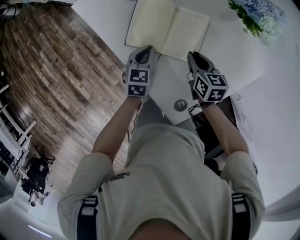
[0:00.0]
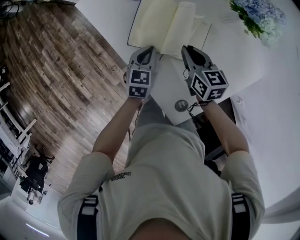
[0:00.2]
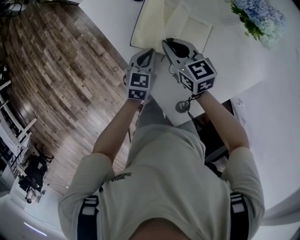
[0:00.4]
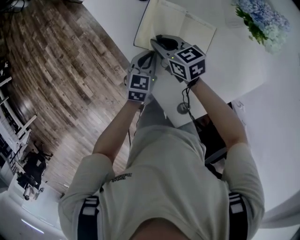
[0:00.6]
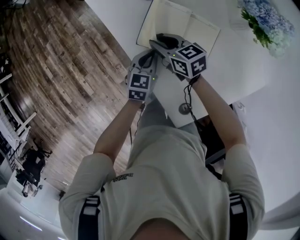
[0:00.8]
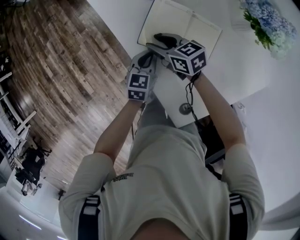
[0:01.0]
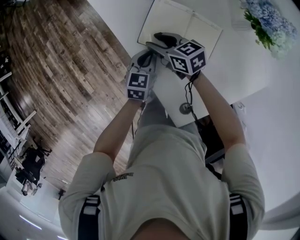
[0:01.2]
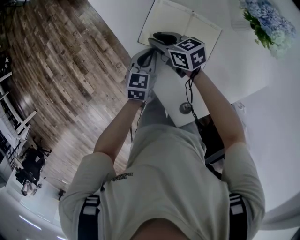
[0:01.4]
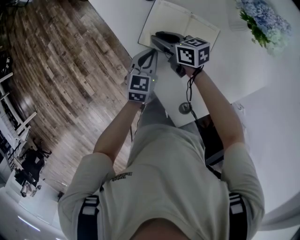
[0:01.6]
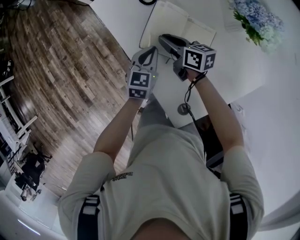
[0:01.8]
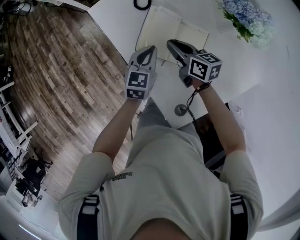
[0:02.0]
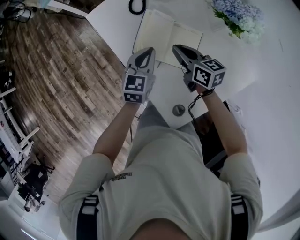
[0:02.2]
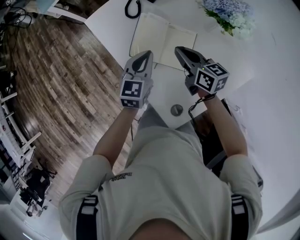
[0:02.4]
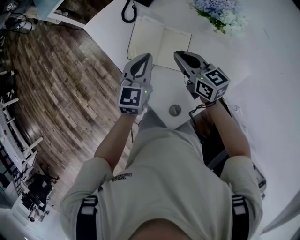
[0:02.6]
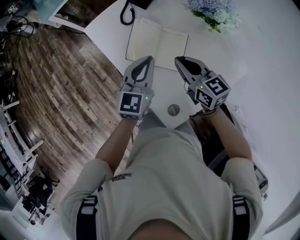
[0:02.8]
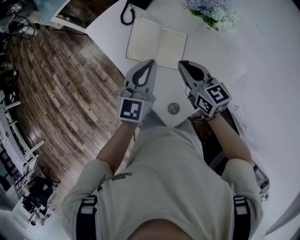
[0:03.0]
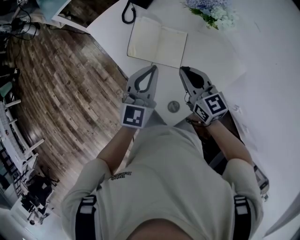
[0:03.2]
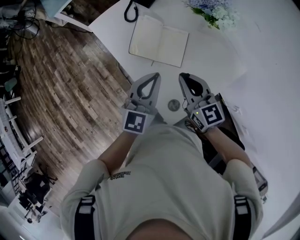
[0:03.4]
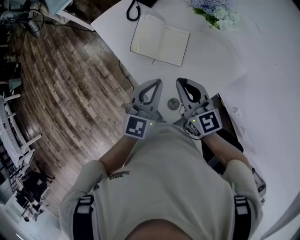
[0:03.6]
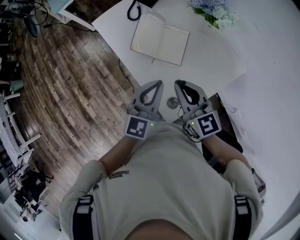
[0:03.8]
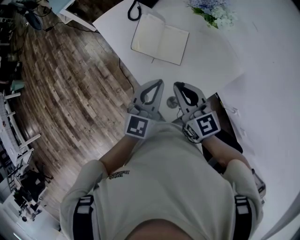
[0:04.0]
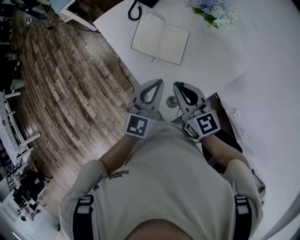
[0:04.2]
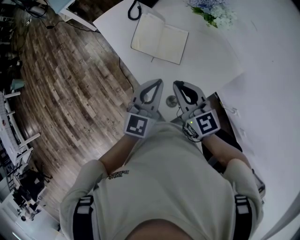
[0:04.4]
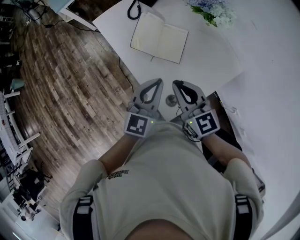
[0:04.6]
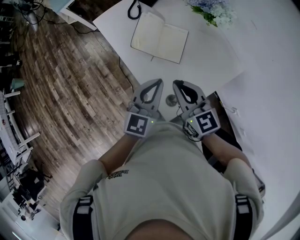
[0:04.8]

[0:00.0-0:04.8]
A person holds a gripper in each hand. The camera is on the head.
0:00.0 to 0:01.6: The right gripper goes roughly 20 cm to the left and forward, and rotates roughly 40 degrees.
0:01.6 to 0:03.2: The right gripper heads upward, backward and to the right, covering roughly 30 cm, turns by some 40 degrees, and closes; the left gripper goes about 25 cm upward, and turns by about 30 degrees.
0:03.2 to 0:04.8: The two grippers go about 10 cm backward.

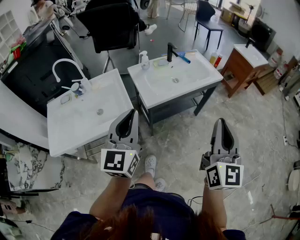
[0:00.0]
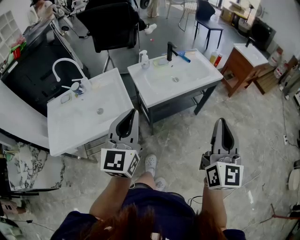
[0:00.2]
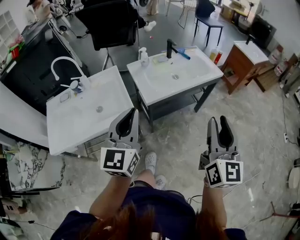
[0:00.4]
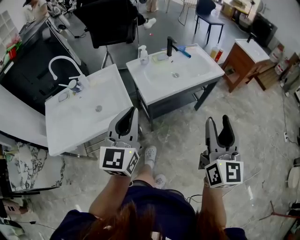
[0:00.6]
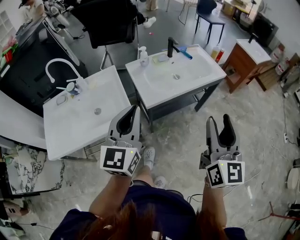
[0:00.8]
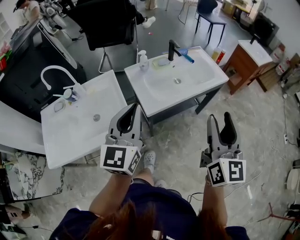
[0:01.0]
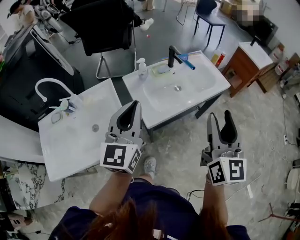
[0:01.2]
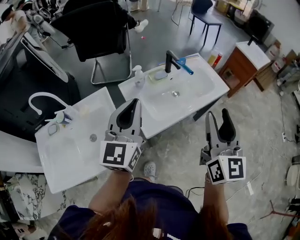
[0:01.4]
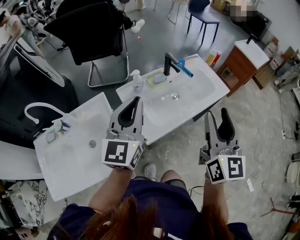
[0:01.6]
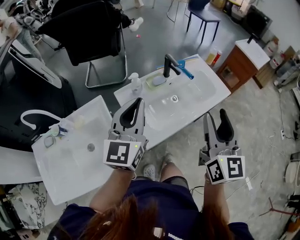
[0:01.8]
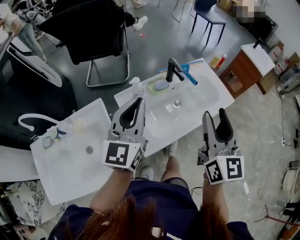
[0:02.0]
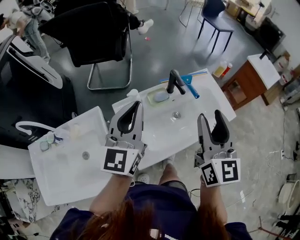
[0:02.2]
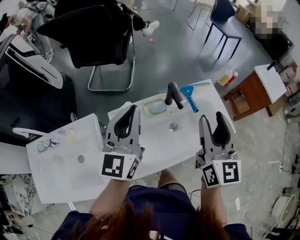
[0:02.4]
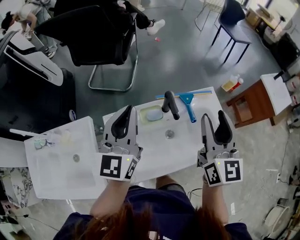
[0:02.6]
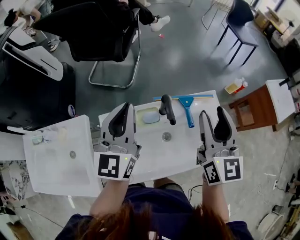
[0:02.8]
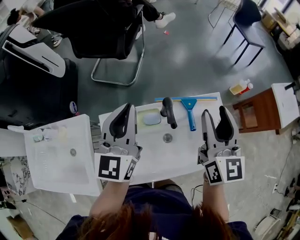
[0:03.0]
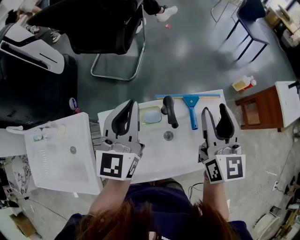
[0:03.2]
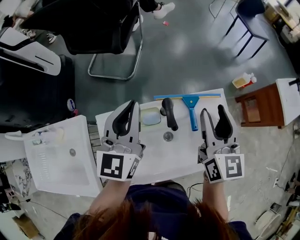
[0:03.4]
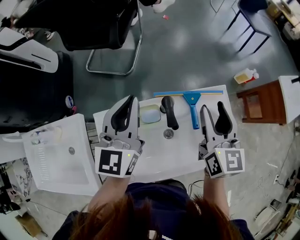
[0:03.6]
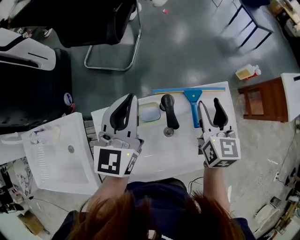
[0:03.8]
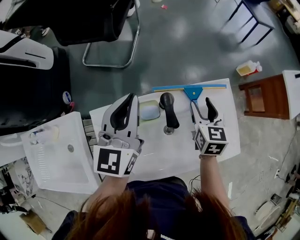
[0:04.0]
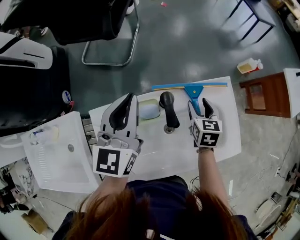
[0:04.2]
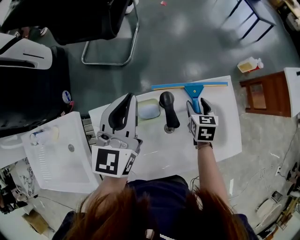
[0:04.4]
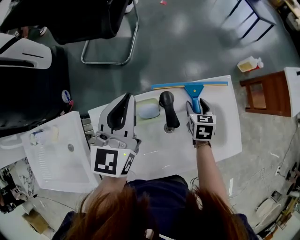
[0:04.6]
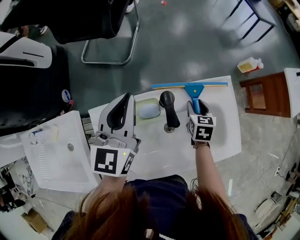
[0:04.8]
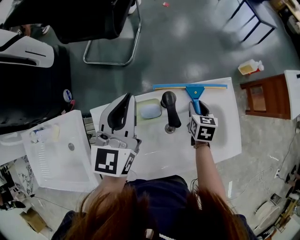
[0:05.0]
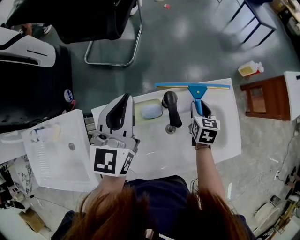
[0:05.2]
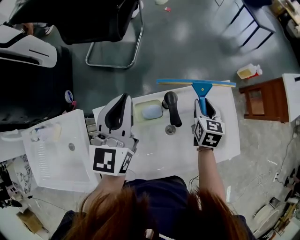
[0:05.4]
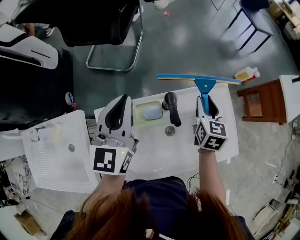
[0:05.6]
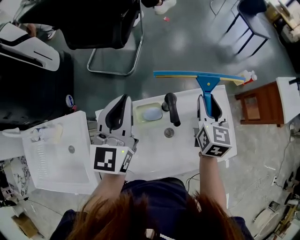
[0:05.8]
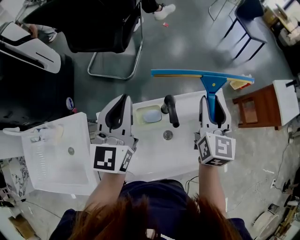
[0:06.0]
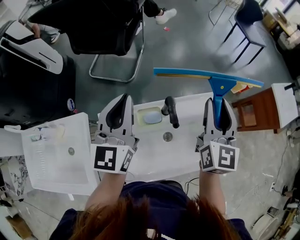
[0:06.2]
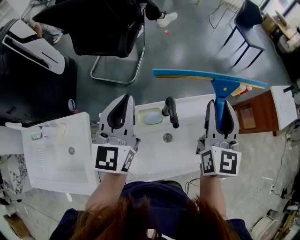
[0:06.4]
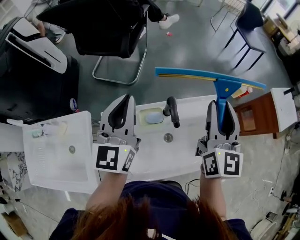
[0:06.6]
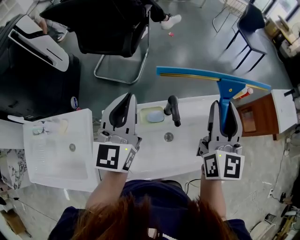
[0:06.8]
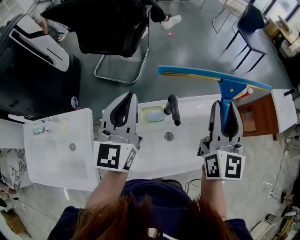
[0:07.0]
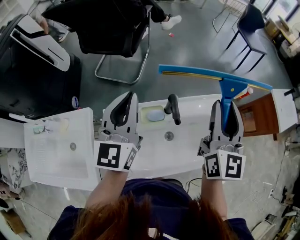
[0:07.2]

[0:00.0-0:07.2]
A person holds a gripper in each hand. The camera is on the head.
0:00.0 to 0:01.4: Both grippers move forward, approximately 30 cm. The right gripper opens up.
0:01.4 to 0:02.8: The two grippers go roughly 40 cm forward. The right gripper swivels some 20 degrees.
0:02.8 to 0:04.4: The right gripper goes approximately 35 cm downward, and tilts its fingers some 50 degrees downward, while the left gripper is displaced downward and forward by about 15 cm.
0:04.4 to 0:05.8: The left gripper travels upward by roughly 5 cm, while the right gripper heads upward, covering about 20 cm, swivels roughly 30 degrees, and closes its fingers.
0:05.8 to 0:07.2: The right gripper travels upward and backward by about 20 cm, and rotates roughly 30 degrees; the left gripper shifts approximately 10 cm upward.

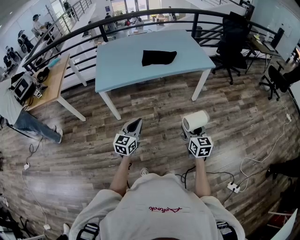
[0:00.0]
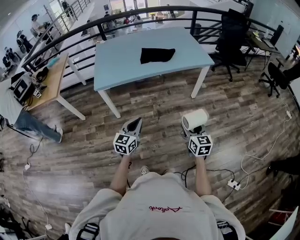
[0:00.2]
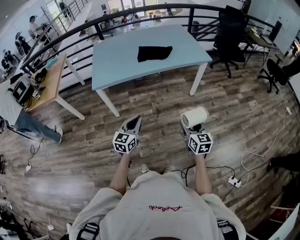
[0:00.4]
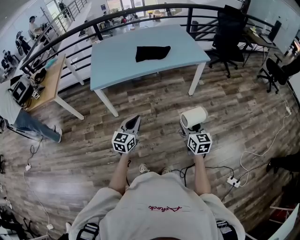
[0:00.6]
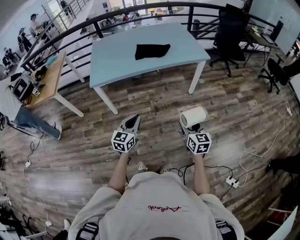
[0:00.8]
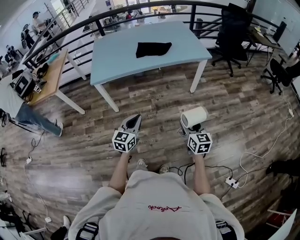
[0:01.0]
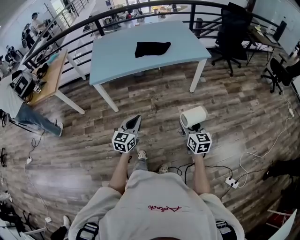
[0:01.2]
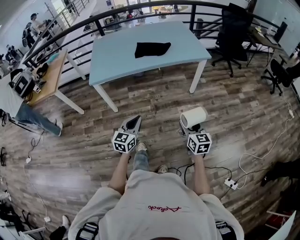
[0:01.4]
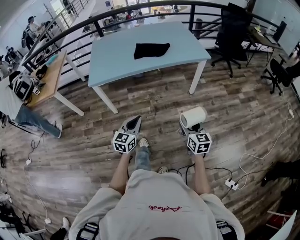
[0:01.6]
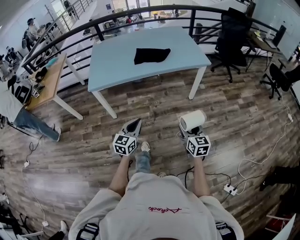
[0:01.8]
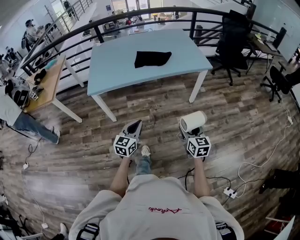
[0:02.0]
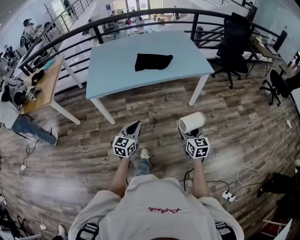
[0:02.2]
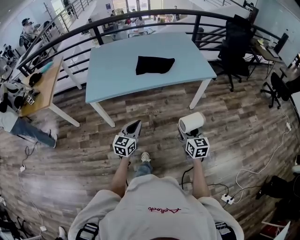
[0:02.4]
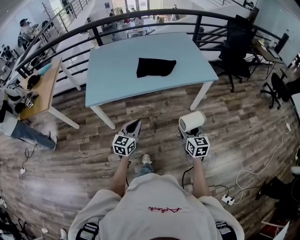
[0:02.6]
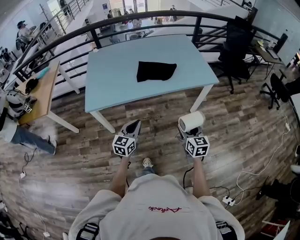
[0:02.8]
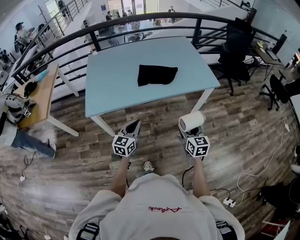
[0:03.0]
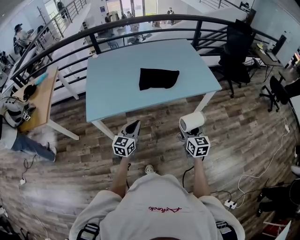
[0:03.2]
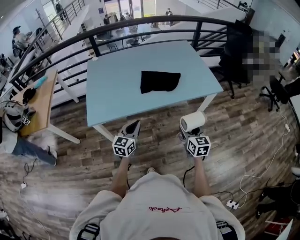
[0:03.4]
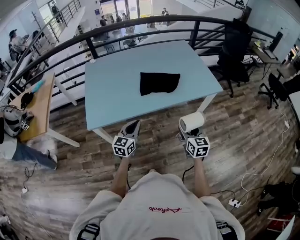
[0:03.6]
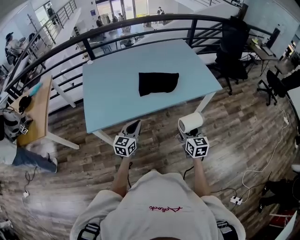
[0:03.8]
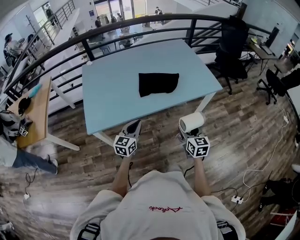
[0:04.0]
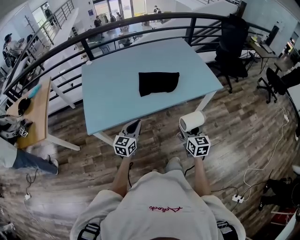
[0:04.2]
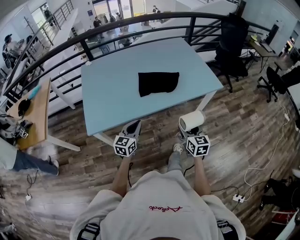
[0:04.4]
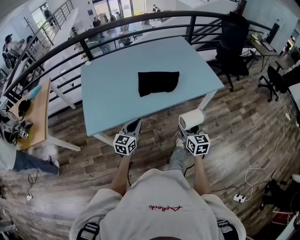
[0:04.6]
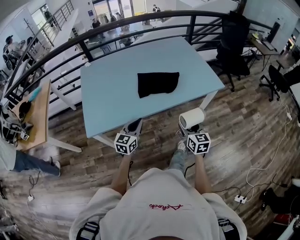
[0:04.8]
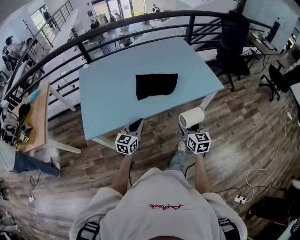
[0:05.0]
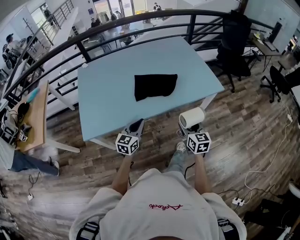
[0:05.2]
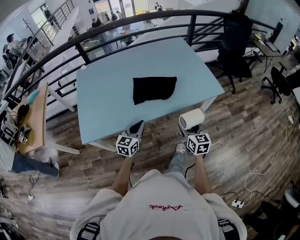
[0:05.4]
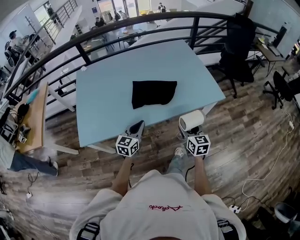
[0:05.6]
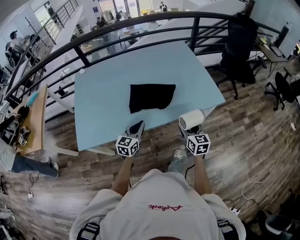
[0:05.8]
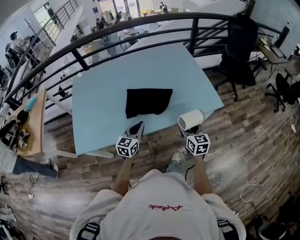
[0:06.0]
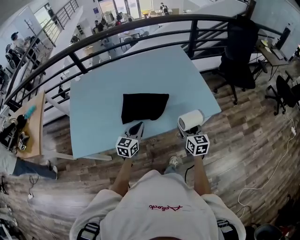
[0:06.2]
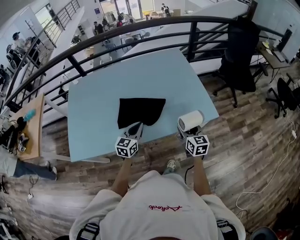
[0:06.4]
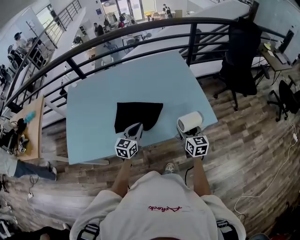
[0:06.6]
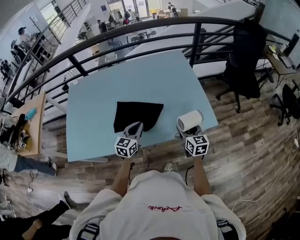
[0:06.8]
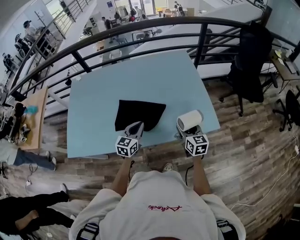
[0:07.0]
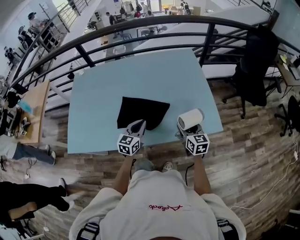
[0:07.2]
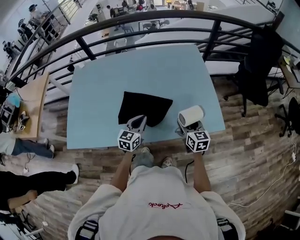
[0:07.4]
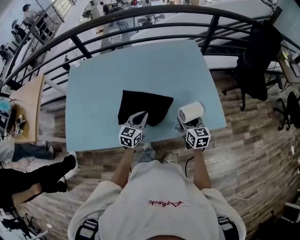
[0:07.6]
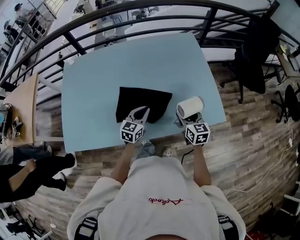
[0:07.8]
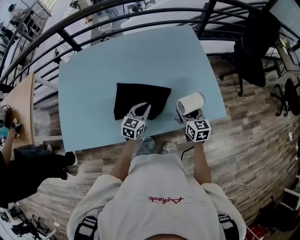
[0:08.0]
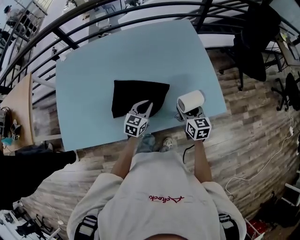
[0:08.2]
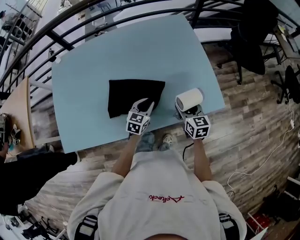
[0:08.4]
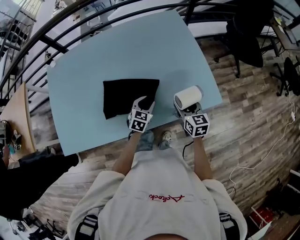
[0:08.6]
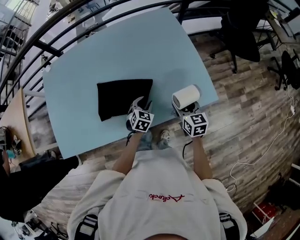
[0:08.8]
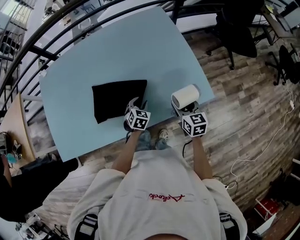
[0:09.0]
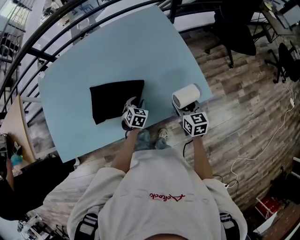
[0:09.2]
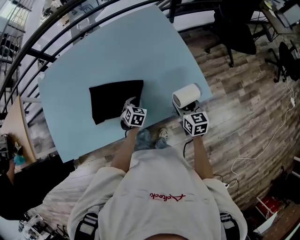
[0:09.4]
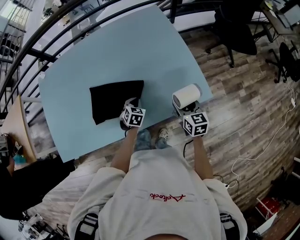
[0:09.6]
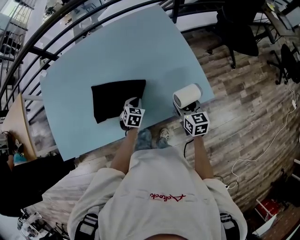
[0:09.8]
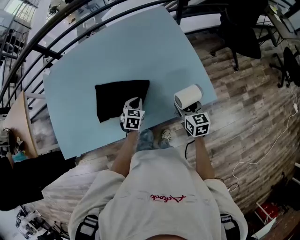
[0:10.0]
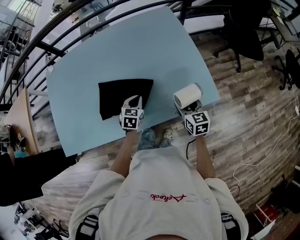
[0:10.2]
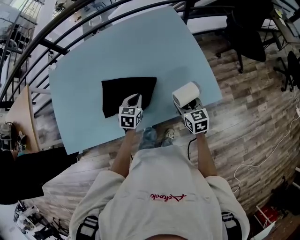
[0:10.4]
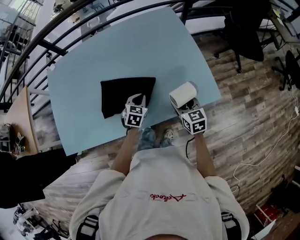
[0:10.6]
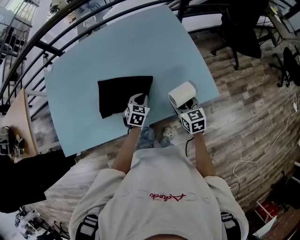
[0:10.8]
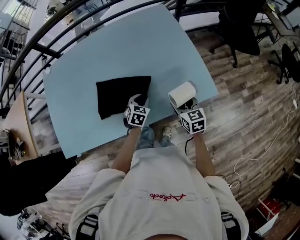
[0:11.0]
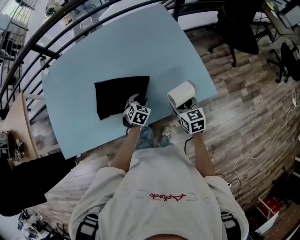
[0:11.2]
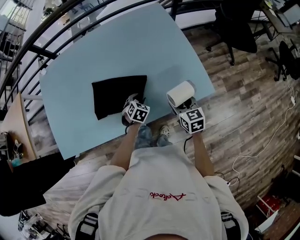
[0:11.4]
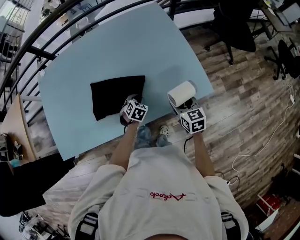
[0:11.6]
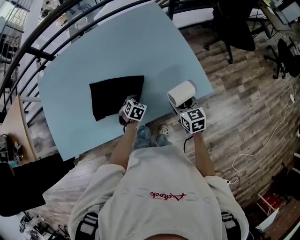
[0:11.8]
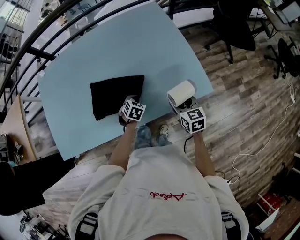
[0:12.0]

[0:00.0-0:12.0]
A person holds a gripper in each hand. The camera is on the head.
0:00.0 to 0:01.6: The two grippers go about 10 cm to the right.
0:01.6 to 0:03.0: The left gripper moves forward, approximately 30 cm, while the right gripper is displaced forward and to the left by some 30 cm.
0:03.0 to 0:04.4: The grippers both shift forward and to the left by roughly 10 cm.
0:04.4 to 0:06.0: The two grippers go roughly 25 cm forward and to the right.
0:06.0 to 0:07.6: The grippers both shift forward by some 20 cm.
0:07.6 to 0:09.0: The right gripper travels to the right and downward by roughly 10 cm. Meanwhile the left gripper travels downward and to the right by some 20 cm, tips its fingers downward by approximately 30 degrees, and opens up.
0:09.0 to 0:10.4: The left gripper heads upward and to the left, covering roughly 10 cm, and closes its fingers.
0:10.4 to 0:12.0: The left gripper moves downward, some 10 cm, turns by roughly 30 degrees, and opens, then closes once more.
